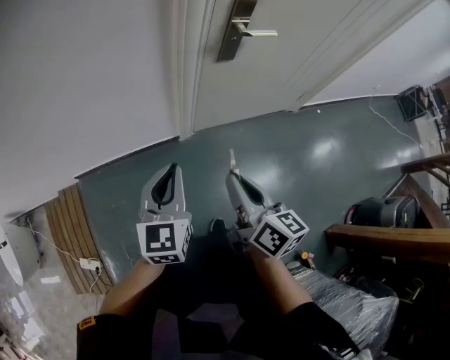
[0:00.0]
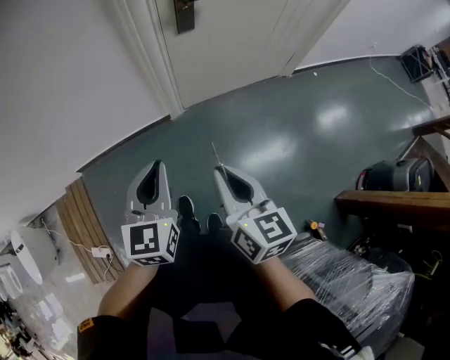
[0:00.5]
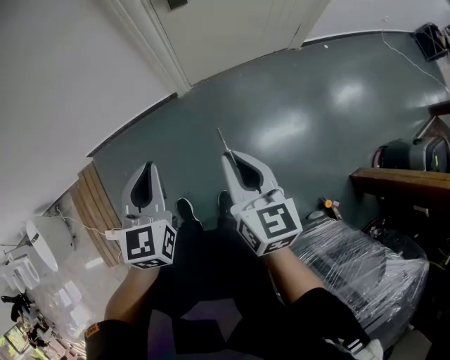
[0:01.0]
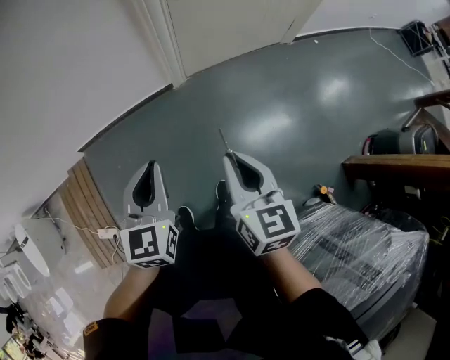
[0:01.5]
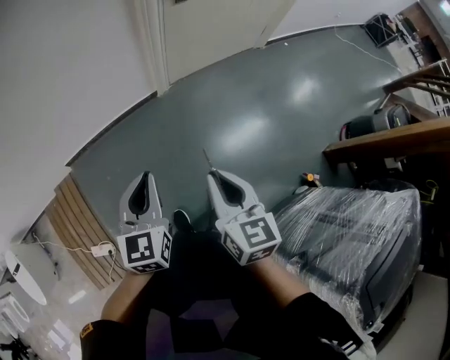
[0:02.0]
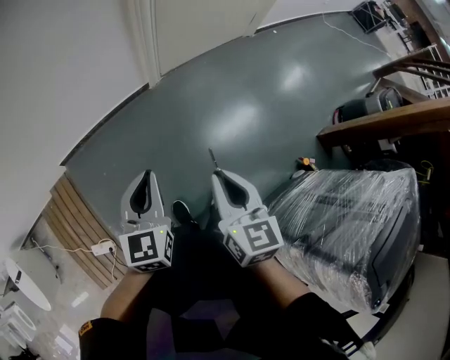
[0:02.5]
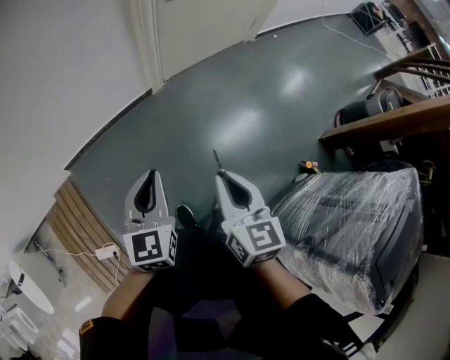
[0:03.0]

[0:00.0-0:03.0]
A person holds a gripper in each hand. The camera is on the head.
0:00.0 to 0:01.5: The grippers both shift backward by about 20 cm. The right gripper turns by about 20 degrees.
0:01.5 to 0:03.0: The grippers both shift backward and to the left by roughly 15 cm.

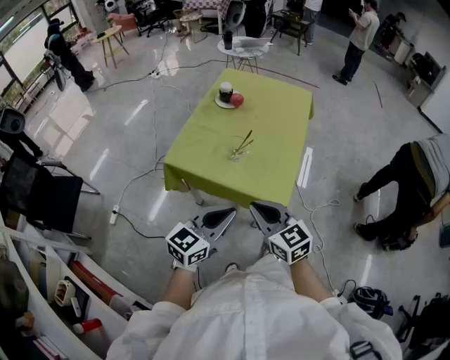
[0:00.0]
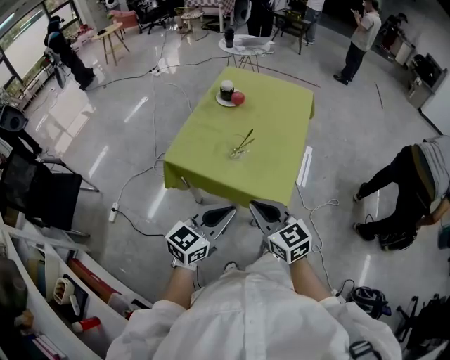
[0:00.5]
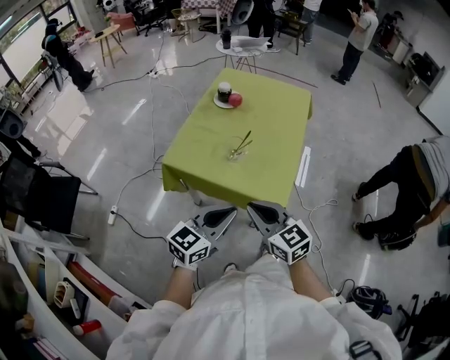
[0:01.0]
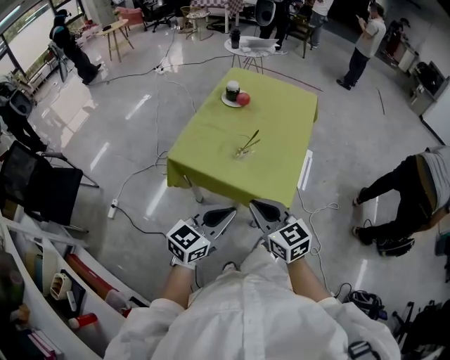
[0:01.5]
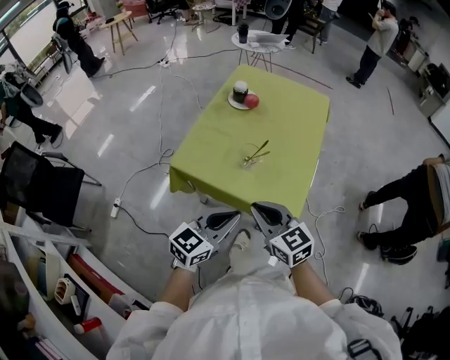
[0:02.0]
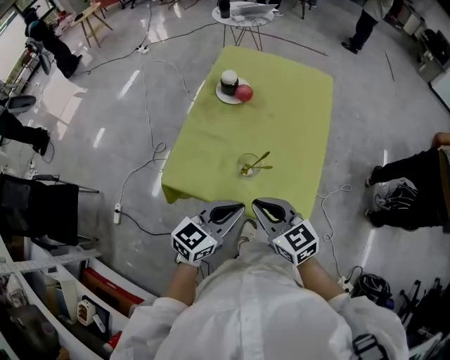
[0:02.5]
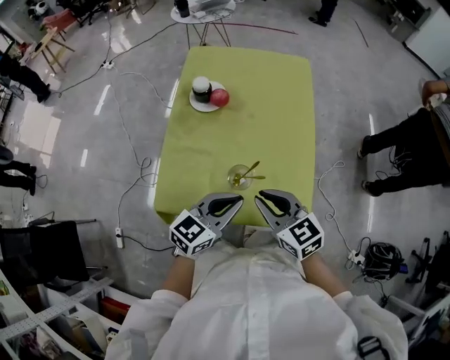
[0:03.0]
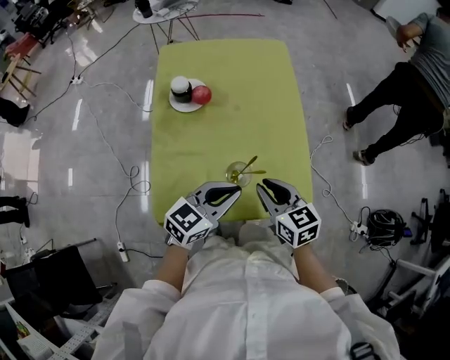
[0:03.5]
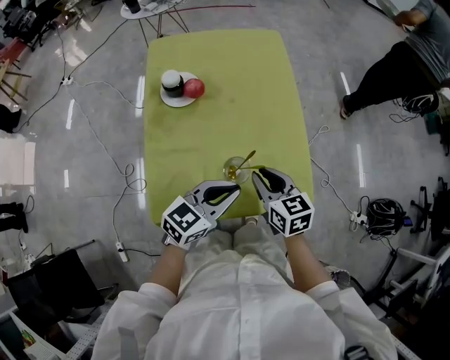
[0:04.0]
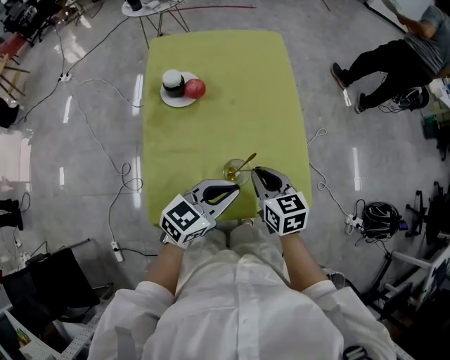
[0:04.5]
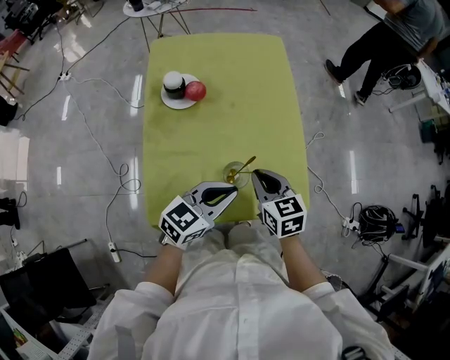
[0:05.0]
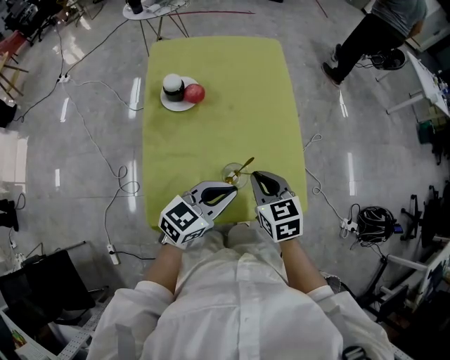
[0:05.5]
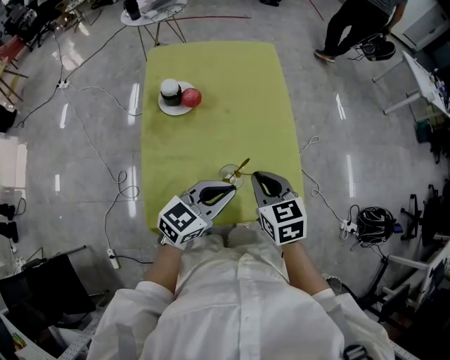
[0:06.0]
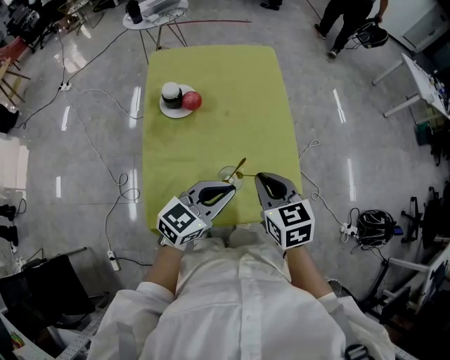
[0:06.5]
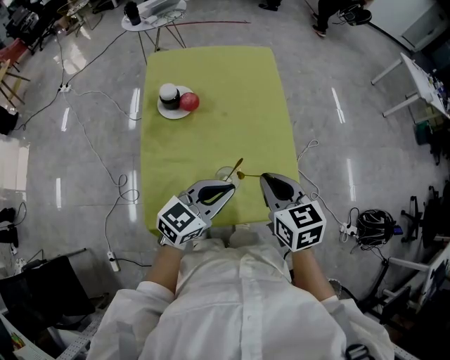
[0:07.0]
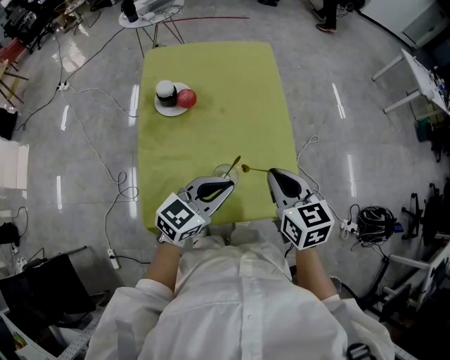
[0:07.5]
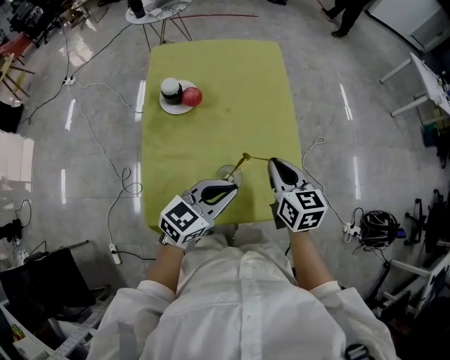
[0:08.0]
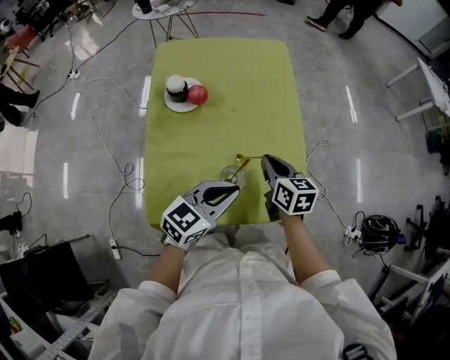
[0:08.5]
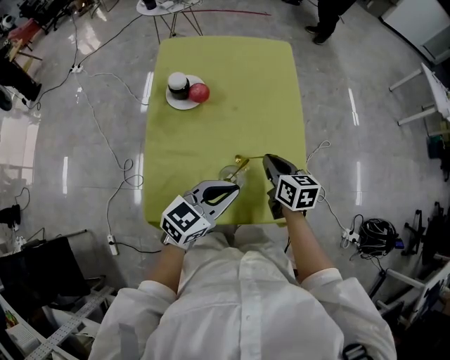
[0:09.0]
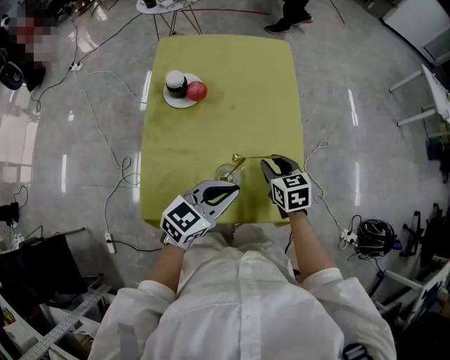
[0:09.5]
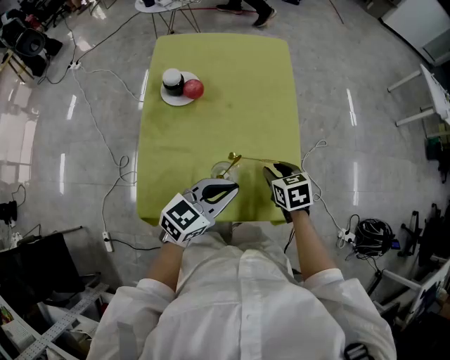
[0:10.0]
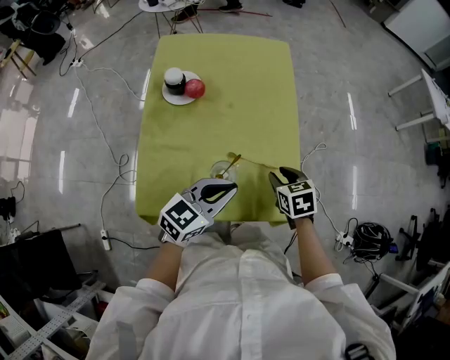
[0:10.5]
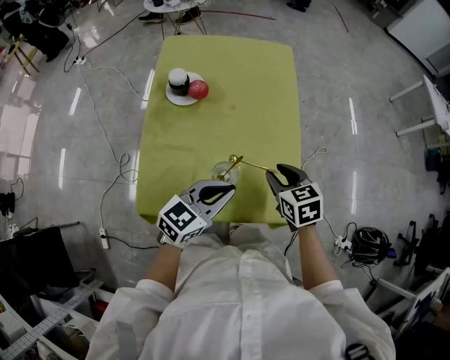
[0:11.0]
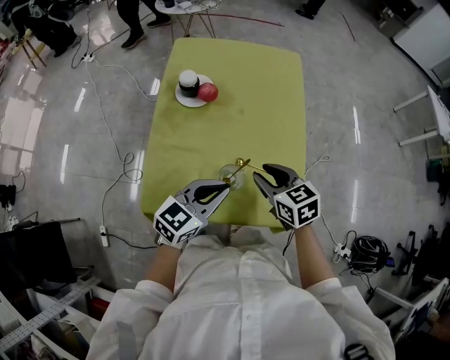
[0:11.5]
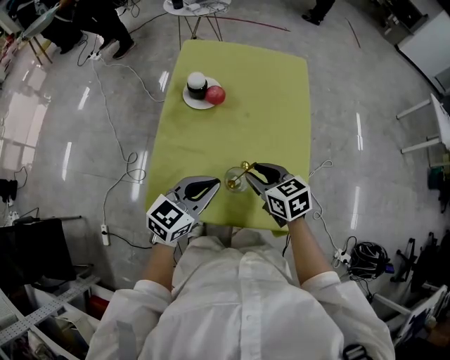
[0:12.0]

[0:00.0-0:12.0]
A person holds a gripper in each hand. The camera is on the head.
0:00.0 to 0:02.0: The grippers move only a little.
0:02.0 to 0:04.0: The left gripper ends up about 10 cm from where it was, and turns by some 40 degrees. Meanwhile the right gripper shifts by about 15 cm, and swivels about 50 degrees.
0:04.0 to 0:06.0: The grippers move only a little.
0:06.0 to 0:08.0: The right gripper shifts some 5 cm forward.
0:08.0 to 0:10.0: The right gripper heads downward, covering roughly 10 cm, rotates approximately 30 degrees, and opens.
0:10.0 to 0:12.0: The left gripper moves to the left, roughly 10 cm, while the right gripper is displaced to the left and upward by about 15 cm, and changes its angle by about 20 degrees.

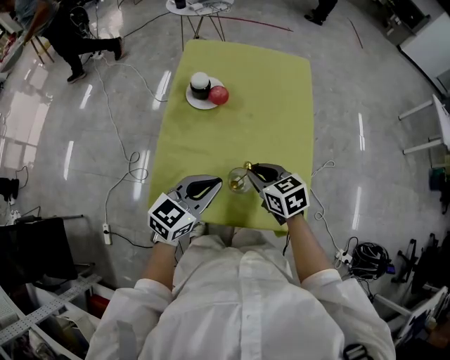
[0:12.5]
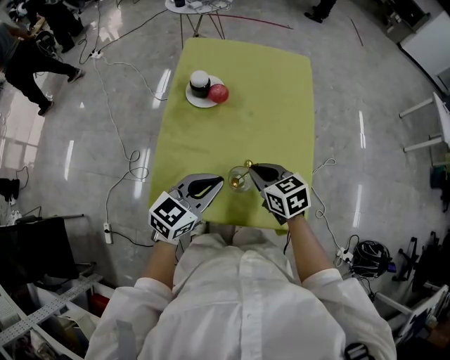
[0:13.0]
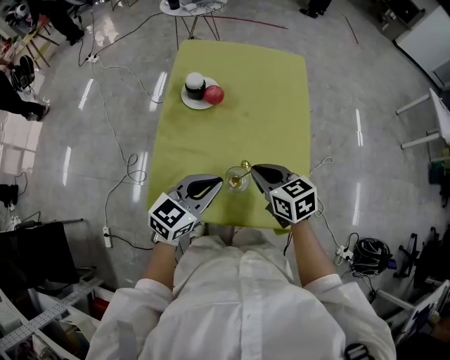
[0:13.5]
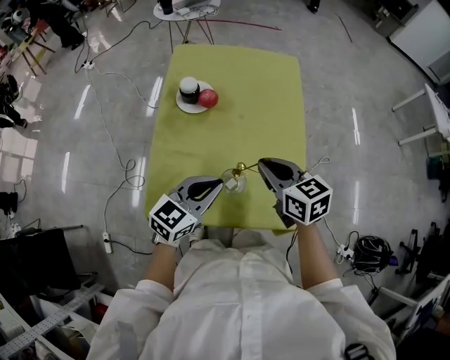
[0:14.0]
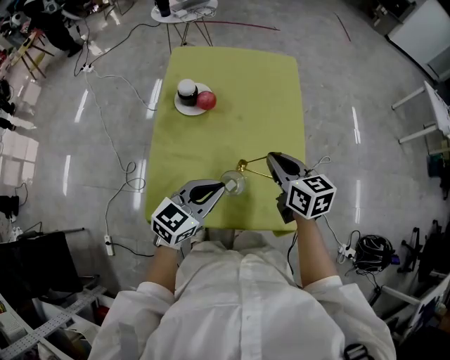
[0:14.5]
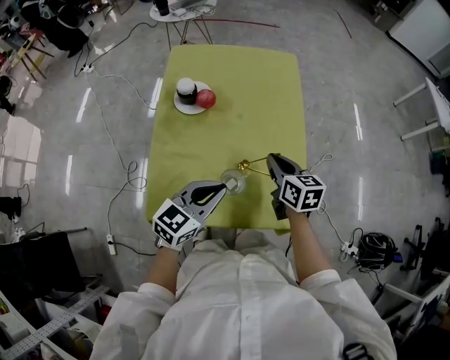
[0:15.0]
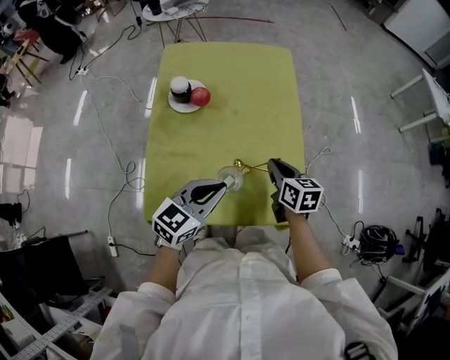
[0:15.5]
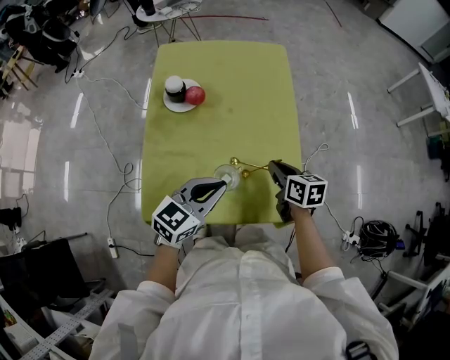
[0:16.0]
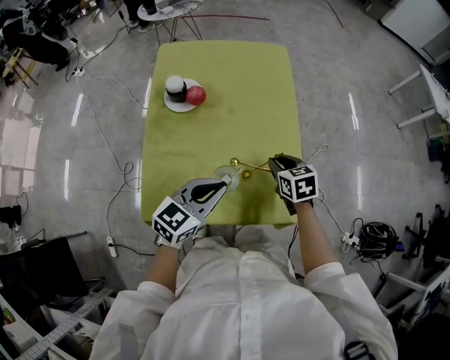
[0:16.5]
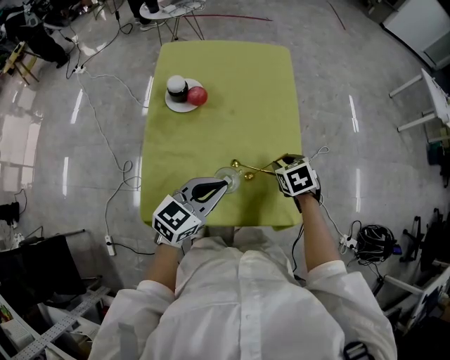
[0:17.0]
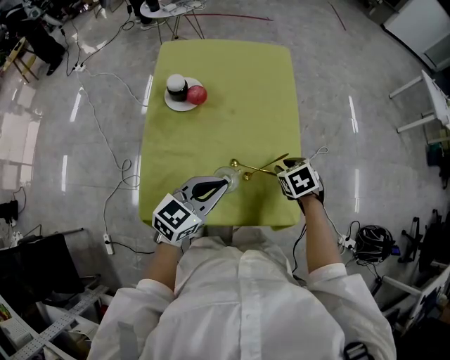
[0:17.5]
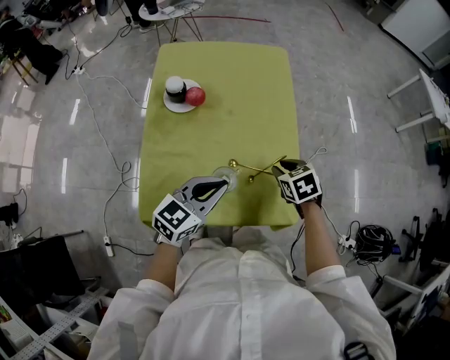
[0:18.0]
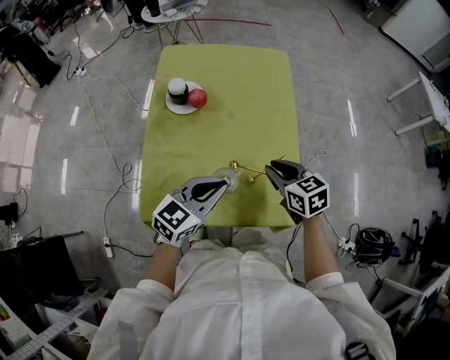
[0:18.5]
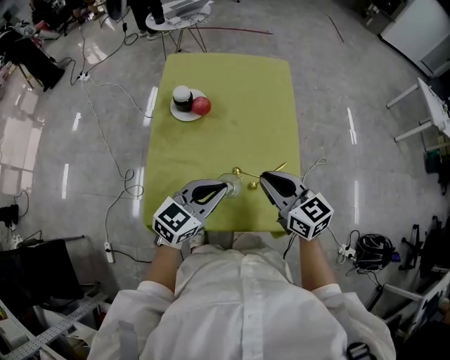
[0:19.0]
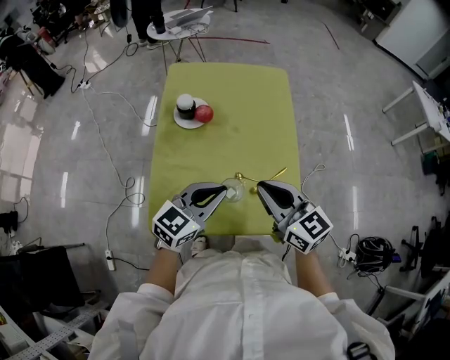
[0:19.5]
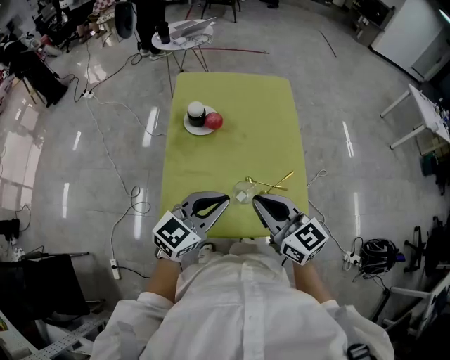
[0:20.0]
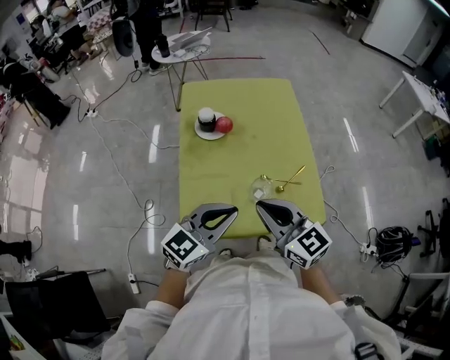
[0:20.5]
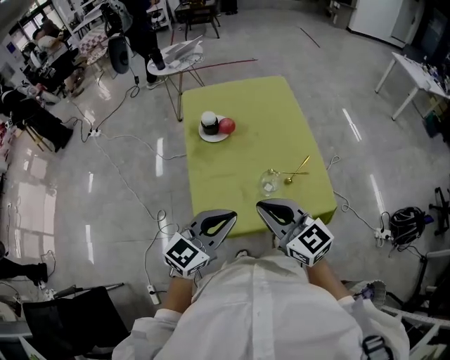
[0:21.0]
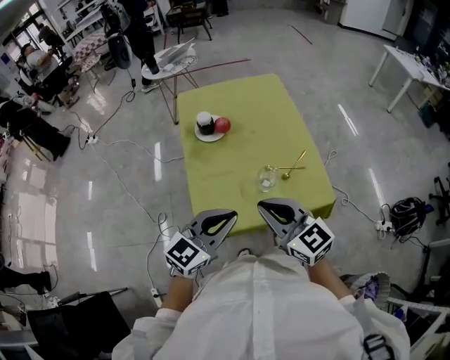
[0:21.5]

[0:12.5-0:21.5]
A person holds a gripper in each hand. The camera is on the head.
0:12.5 to 0:14.5: The right gripper travels upward and to the right by roughly 10 cm, and rotates about 20 degrees.
0:14.5 to 0:17.0: The right gripper shifts about 15 cm downward and to the right, angles its fingers downward, by approximately 40 degrees, and opens up.
0:17.0 to 0:19.5: The right gripper travels upward, to the left and backward by roughly 25 cm, points its fingers about 50 degrees further upward, and closes.
0:19.5 to 0:21.5: The right gripper travels backward and to the left by approximately 15 cm. The left gripper travels backward, to the left and upward by approximately 15 cm.

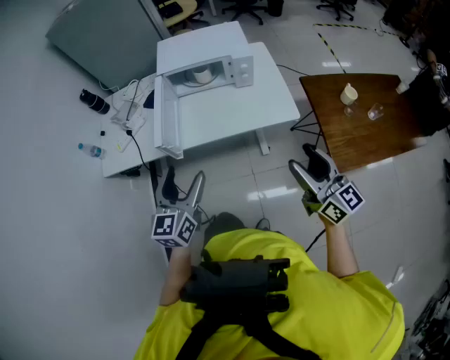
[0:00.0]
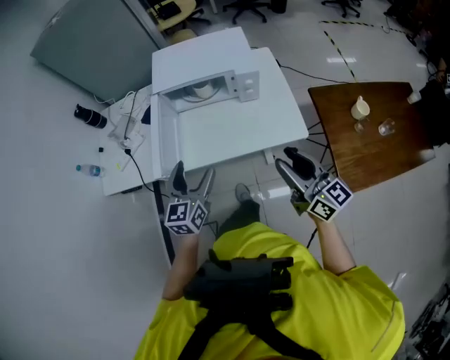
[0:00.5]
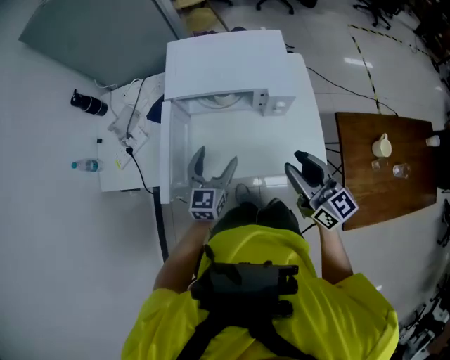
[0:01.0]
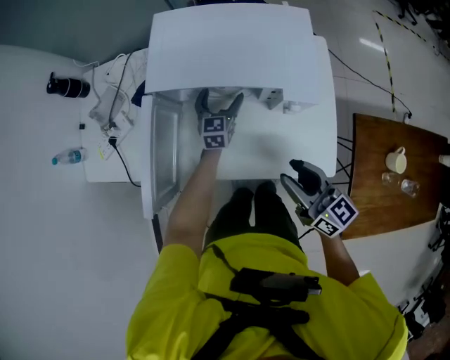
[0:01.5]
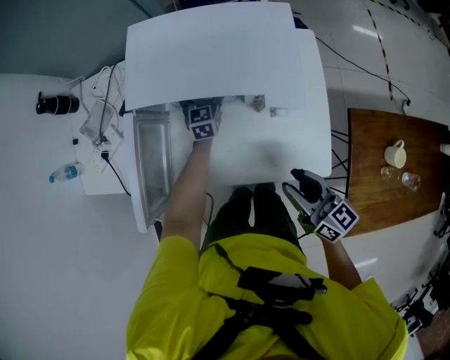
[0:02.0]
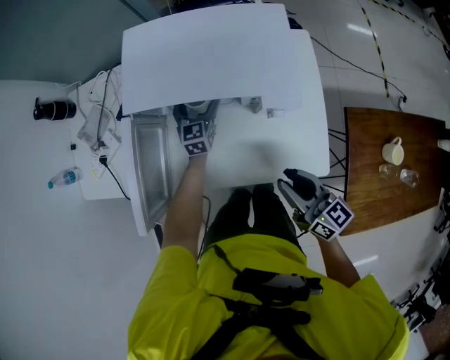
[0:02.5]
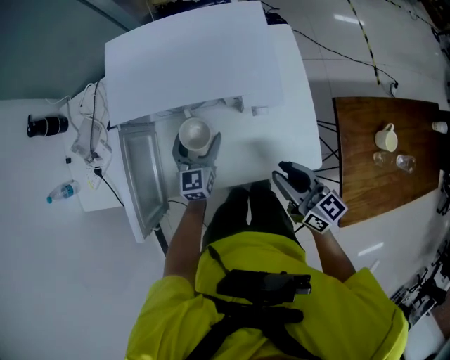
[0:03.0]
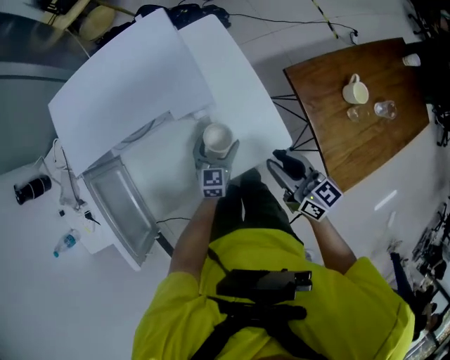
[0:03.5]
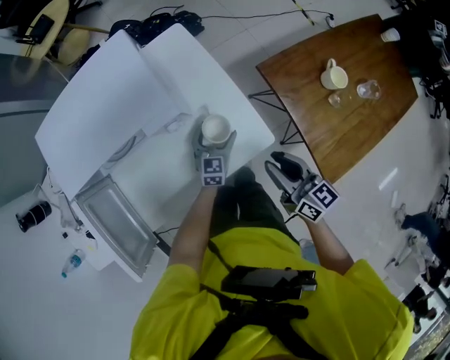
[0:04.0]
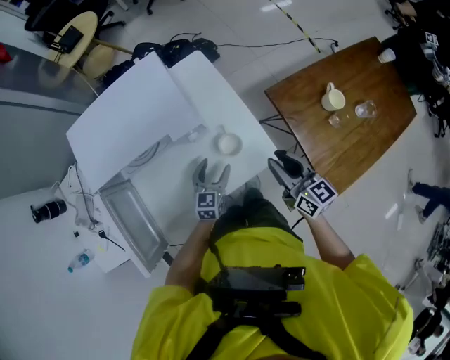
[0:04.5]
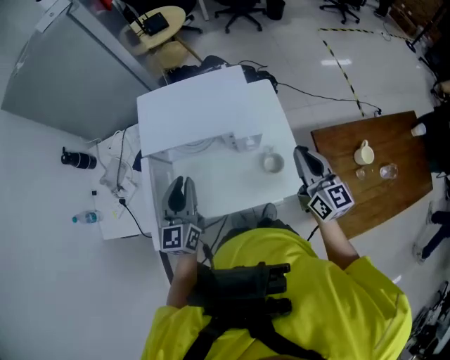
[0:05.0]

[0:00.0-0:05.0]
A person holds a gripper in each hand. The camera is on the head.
0:00.0 to 0:02.5: The left gripper travels forward and downward by roughly 60 cm, while the right gripper moves forward and downward, roughly 40 cm, changes its angle by approximately 30 degrees, and closes.
0:02.5 to 0:05.0: The left gripper moves upward, some 30 cm, and closes. The right gripper travels upward by some 15 cm, rotates approximately 30 degrees, and closes up.
